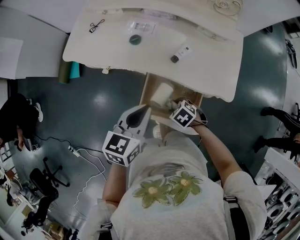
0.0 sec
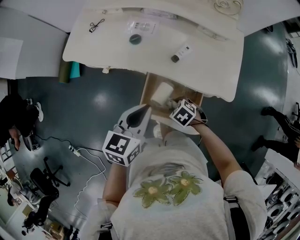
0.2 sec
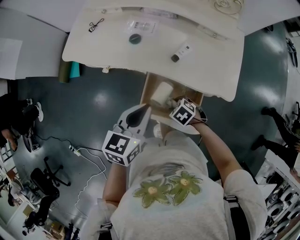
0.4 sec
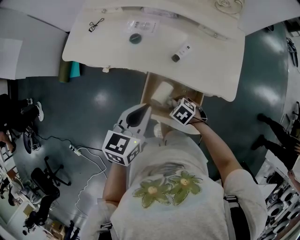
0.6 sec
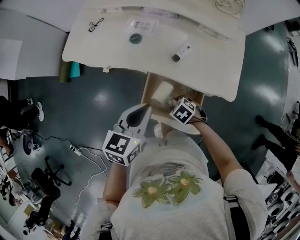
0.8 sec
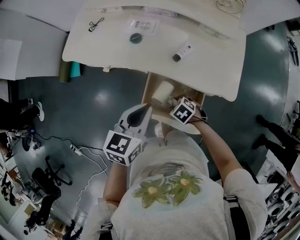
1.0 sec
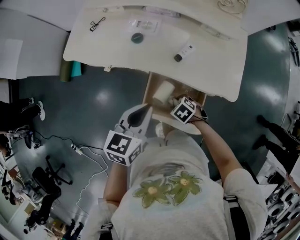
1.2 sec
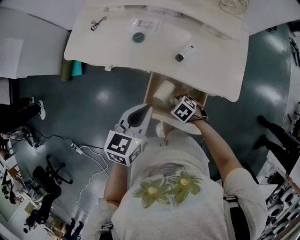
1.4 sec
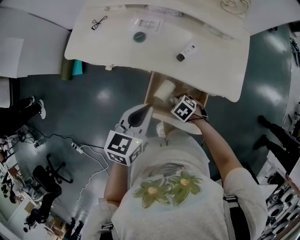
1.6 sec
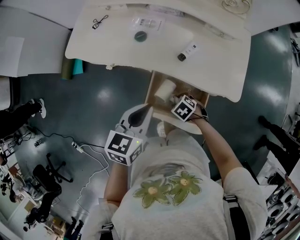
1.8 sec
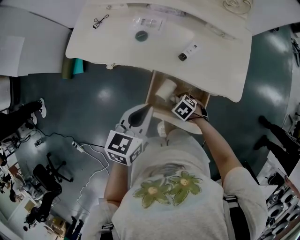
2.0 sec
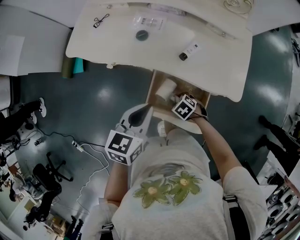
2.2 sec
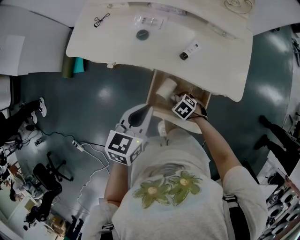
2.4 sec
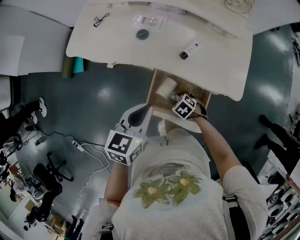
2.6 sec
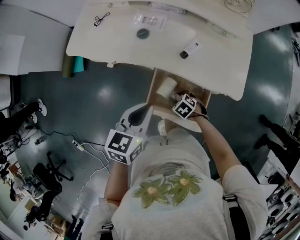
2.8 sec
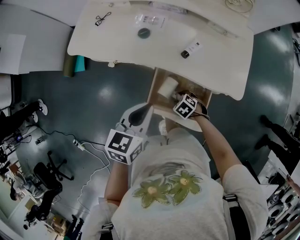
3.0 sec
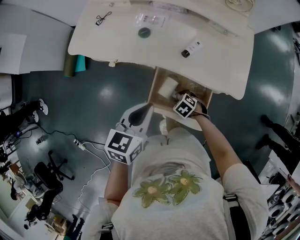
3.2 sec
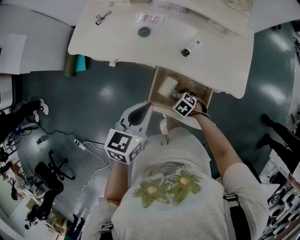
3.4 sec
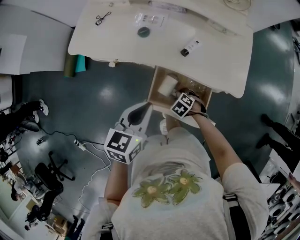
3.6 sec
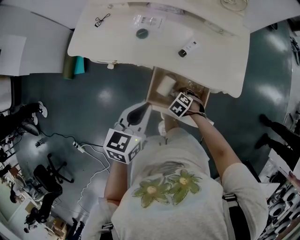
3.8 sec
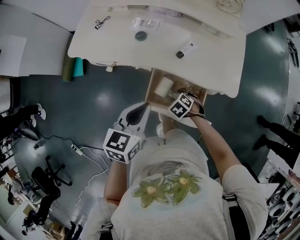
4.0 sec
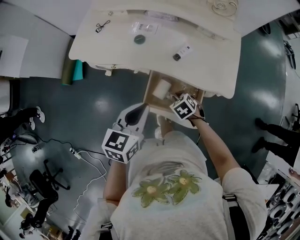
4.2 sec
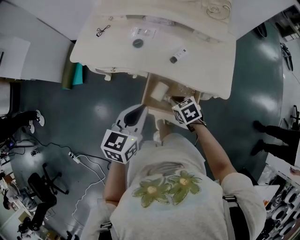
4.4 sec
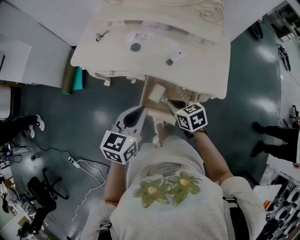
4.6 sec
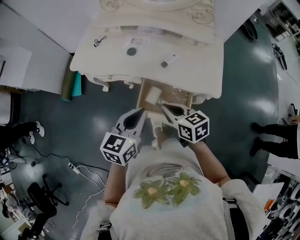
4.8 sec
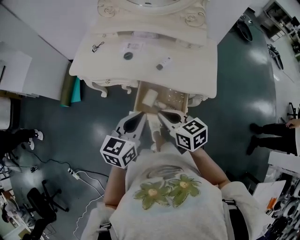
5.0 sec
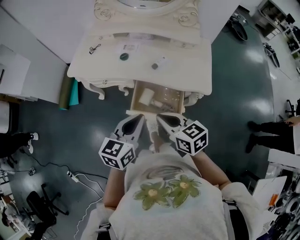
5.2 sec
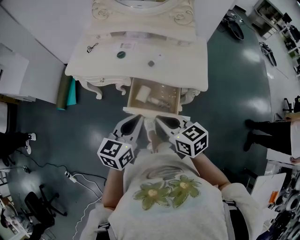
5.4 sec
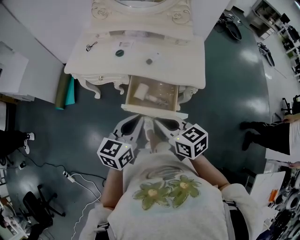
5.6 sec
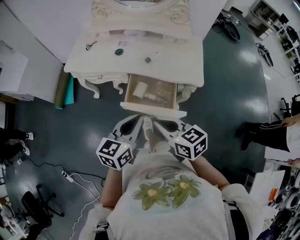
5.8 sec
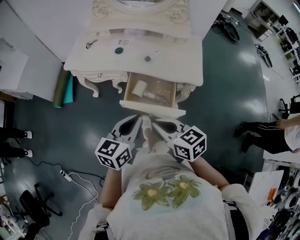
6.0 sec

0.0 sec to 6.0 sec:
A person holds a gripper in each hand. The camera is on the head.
0.0 sec to 1.6 sec: The grippers make only small movements.
1.6 sec to 3.0 sec: The grippers move only a little.
3.0 sec to 4.4 sec: The right gripper shifts some 15 cm upward, rotates some 30 degrees, and closes up.
4.4 sec to 6.0 sec: The left gripper moves backward, about 15 cm; the right gripper moves upward and backward, roughly 30 cm, and tilts its fingers some 30 degrees upward.

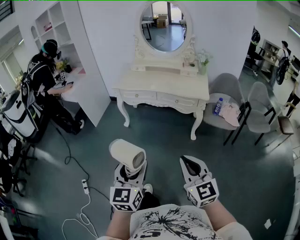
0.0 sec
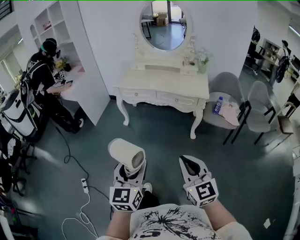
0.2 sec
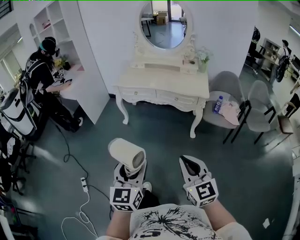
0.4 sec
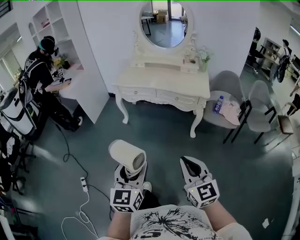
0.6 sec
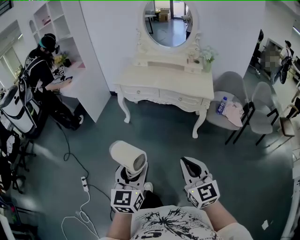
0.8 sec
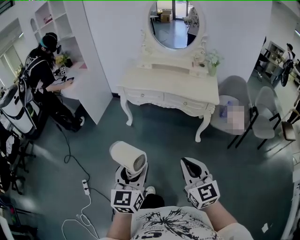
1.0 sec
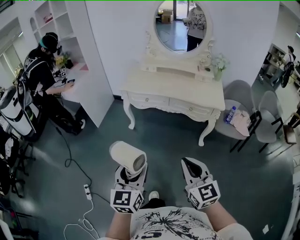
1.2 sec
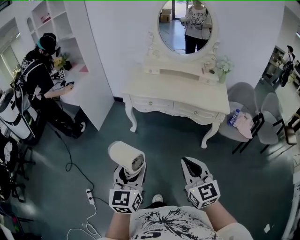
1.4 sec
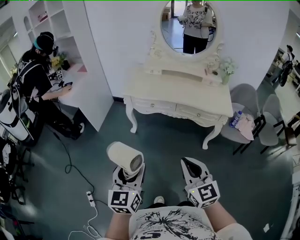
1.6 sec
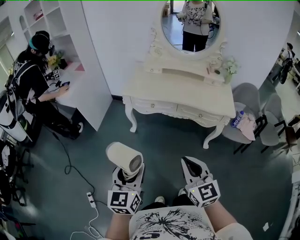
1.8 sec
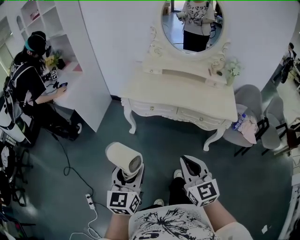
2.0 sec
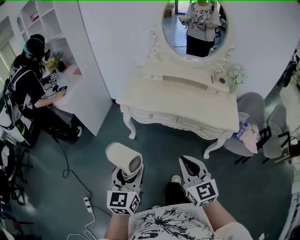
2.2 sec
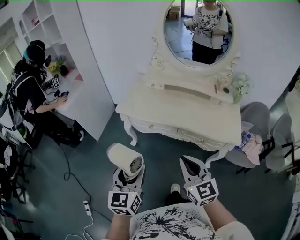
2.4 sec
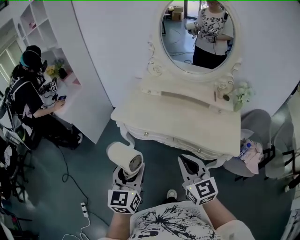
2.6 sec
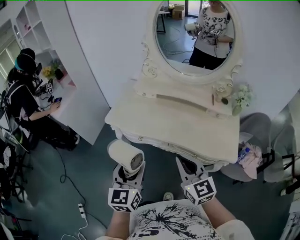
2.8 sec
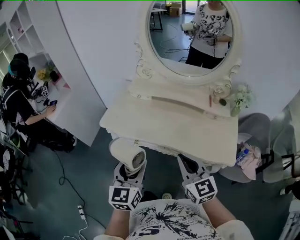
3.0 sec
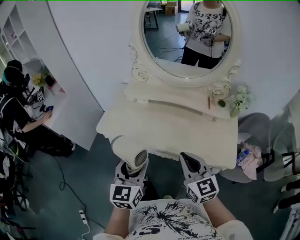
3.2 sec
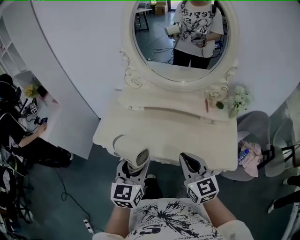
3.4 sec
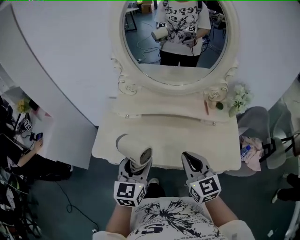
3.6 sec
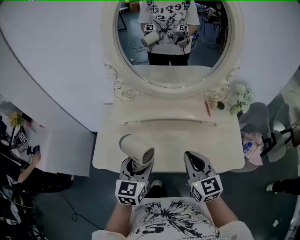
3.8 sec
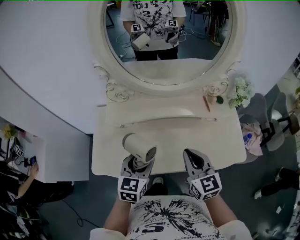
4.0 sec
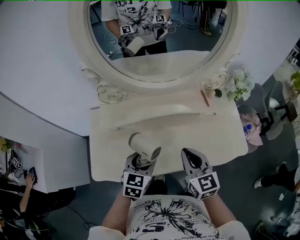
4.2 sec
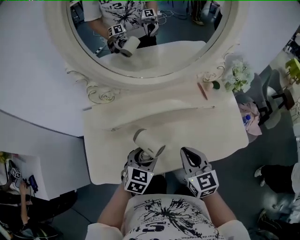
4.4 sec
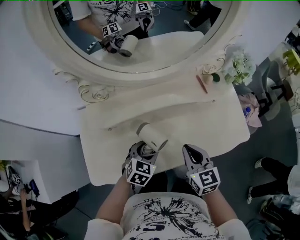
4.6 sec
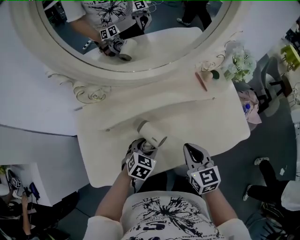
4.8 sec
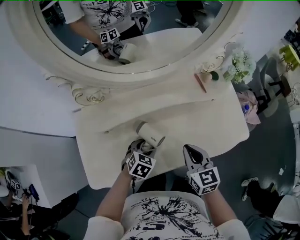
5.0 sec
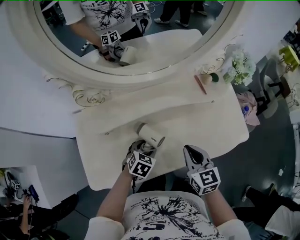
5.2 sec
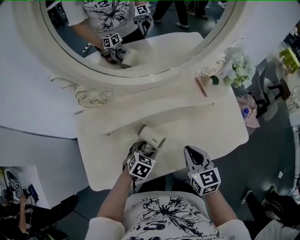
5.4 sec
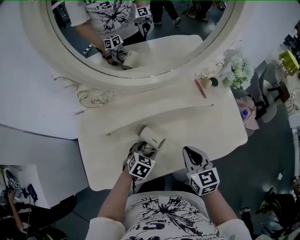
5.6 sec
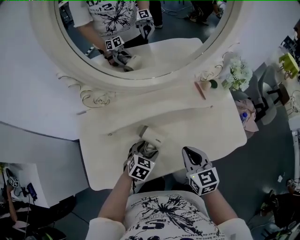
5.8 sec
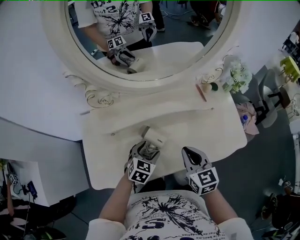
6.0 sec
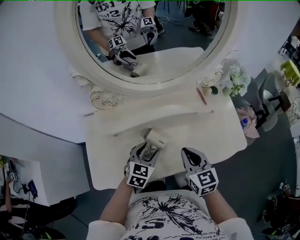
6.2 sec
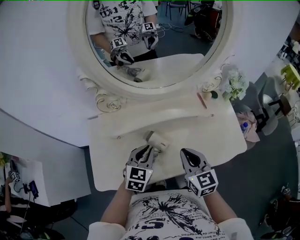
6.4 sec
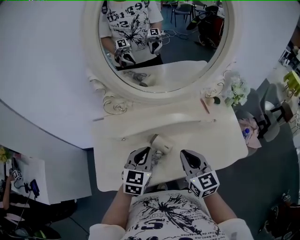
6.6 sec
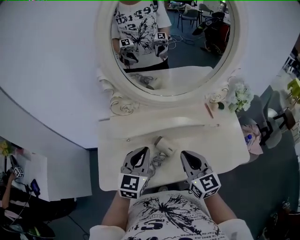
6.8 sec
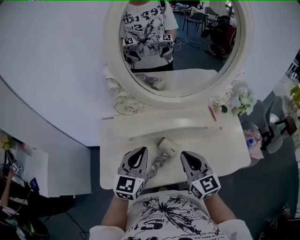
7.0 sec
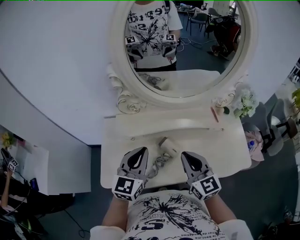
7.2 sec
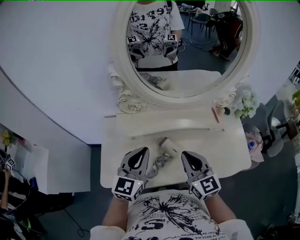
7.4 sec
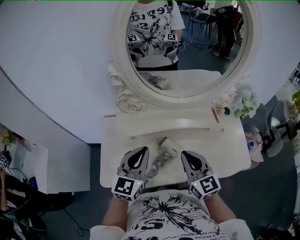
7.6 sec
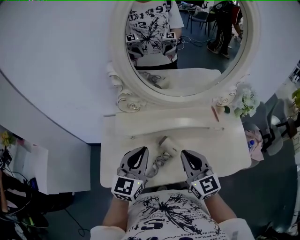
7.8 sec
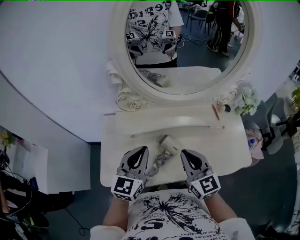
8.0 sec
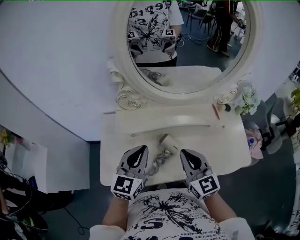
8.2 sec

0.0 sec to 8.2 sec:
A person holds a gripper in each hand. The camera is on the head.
0.0 sec to 1.6 sec: The two grippers go about 30 cm forward and to the left.
1.6 sec to 3.2 sec: The pair of grippers is taken forward and to the right, approximately 50 cm.
3.2 sec to 5.0 sec: The right gripper ends up about 25 cm from where it was, and swivels about 40 degrees. Meanwhile the left gripper travels downward by approximately 30 cm, and tips its fingers downward by some 40 degrees.
5.0 sec to 6.6 sec: The left gripper moves upward, roughly 20 cm, points its fingers approximately 30 degrees further upward, and closes its fingers. Meanwhile the right gripper goes some 10 cm upward and to the left.
6.6 sec to 8.2 sec: The right gripper travels to the left by roughly 5 cm. The left gripper heads upward and to the left, covering about 10 cm.

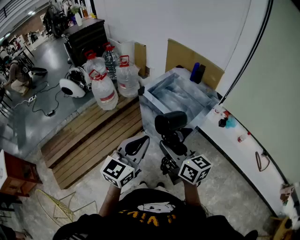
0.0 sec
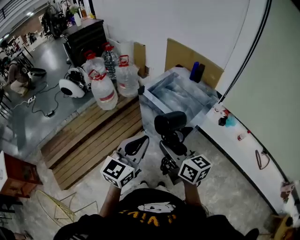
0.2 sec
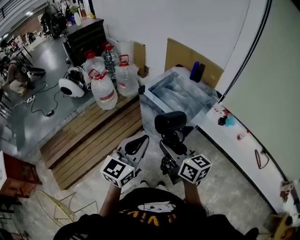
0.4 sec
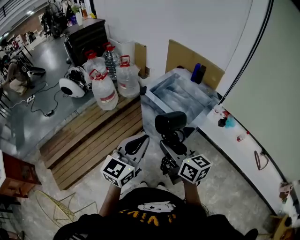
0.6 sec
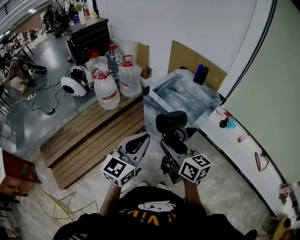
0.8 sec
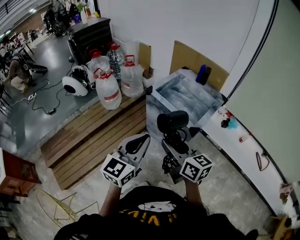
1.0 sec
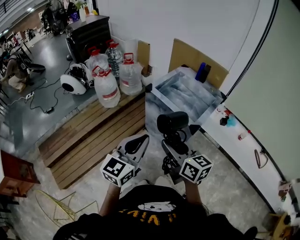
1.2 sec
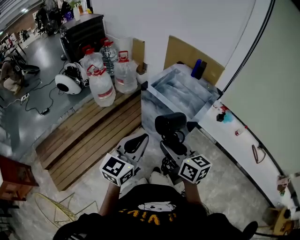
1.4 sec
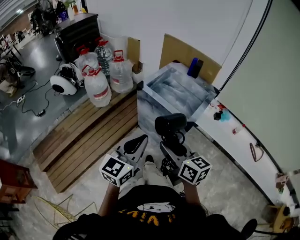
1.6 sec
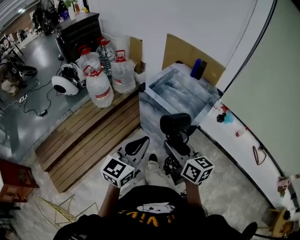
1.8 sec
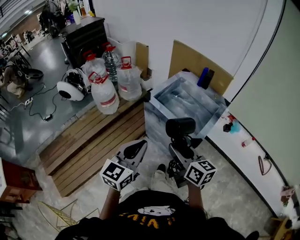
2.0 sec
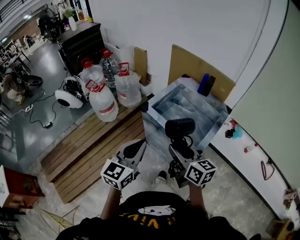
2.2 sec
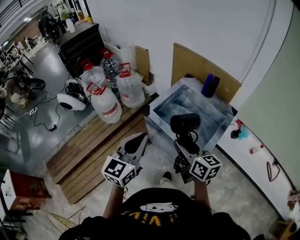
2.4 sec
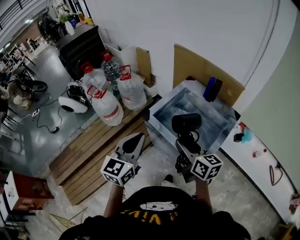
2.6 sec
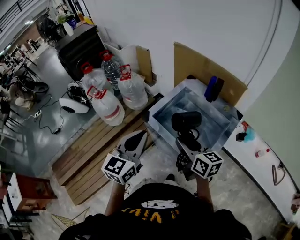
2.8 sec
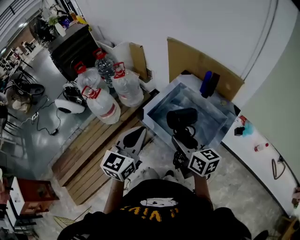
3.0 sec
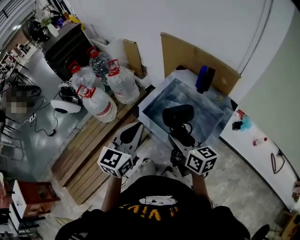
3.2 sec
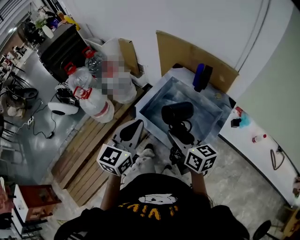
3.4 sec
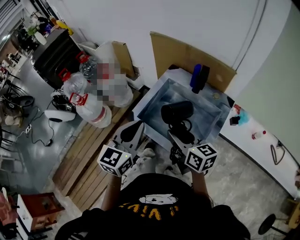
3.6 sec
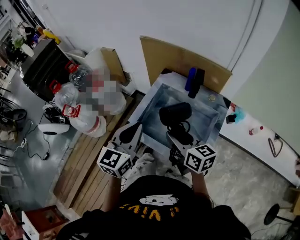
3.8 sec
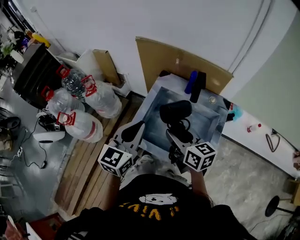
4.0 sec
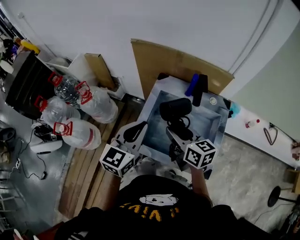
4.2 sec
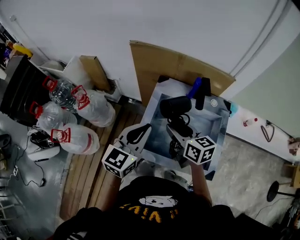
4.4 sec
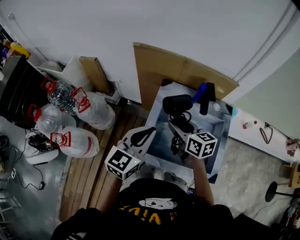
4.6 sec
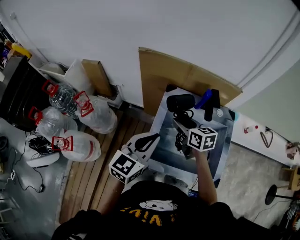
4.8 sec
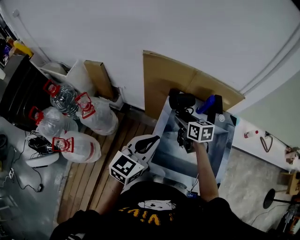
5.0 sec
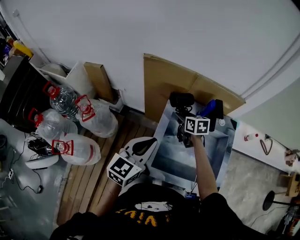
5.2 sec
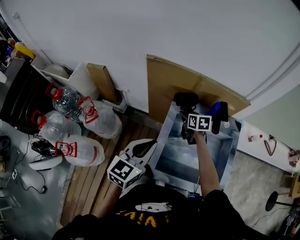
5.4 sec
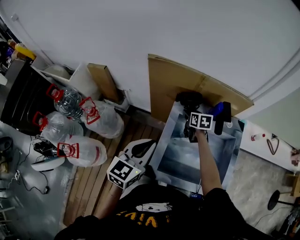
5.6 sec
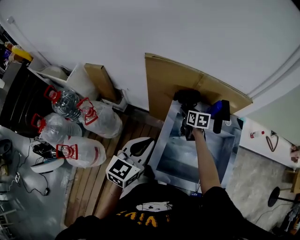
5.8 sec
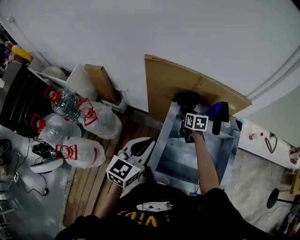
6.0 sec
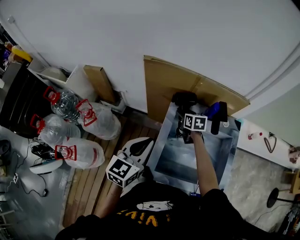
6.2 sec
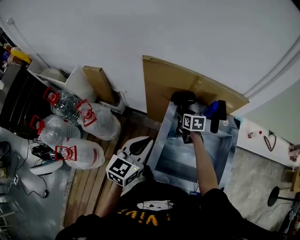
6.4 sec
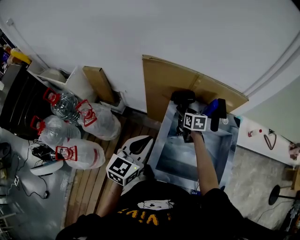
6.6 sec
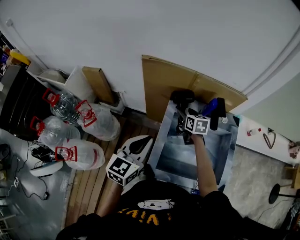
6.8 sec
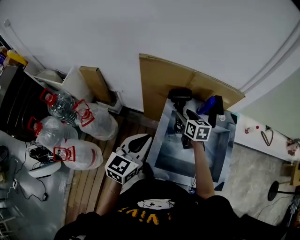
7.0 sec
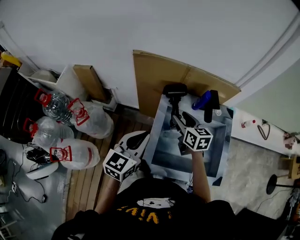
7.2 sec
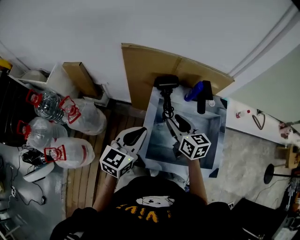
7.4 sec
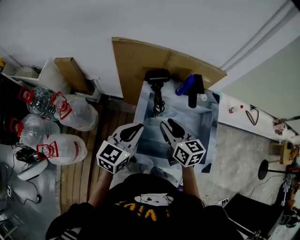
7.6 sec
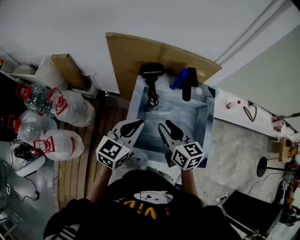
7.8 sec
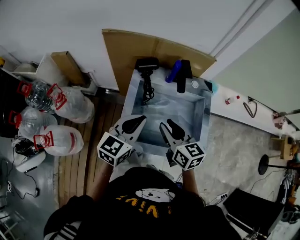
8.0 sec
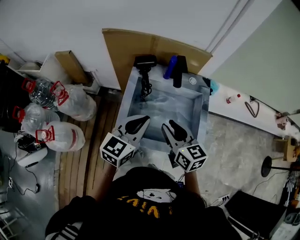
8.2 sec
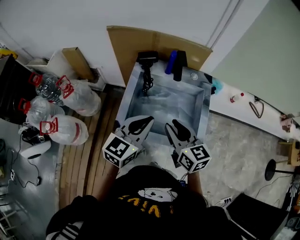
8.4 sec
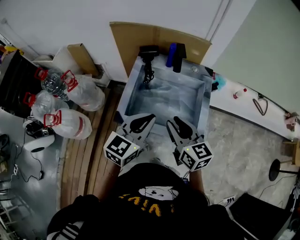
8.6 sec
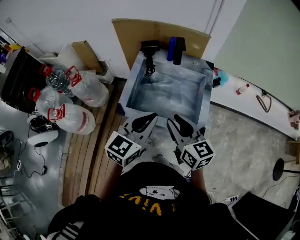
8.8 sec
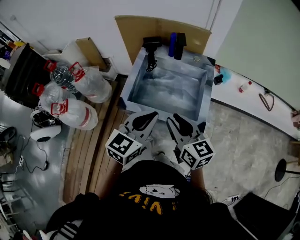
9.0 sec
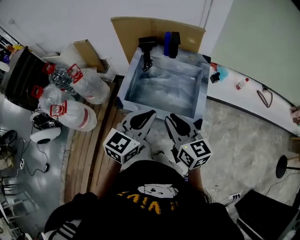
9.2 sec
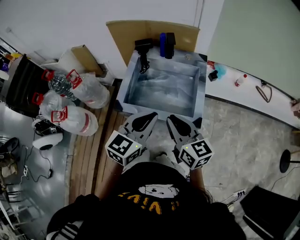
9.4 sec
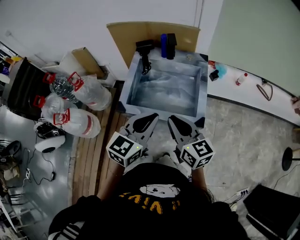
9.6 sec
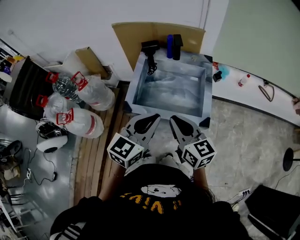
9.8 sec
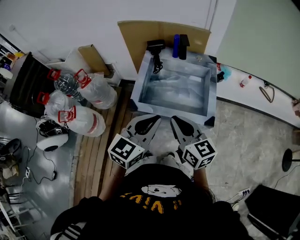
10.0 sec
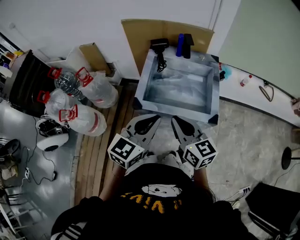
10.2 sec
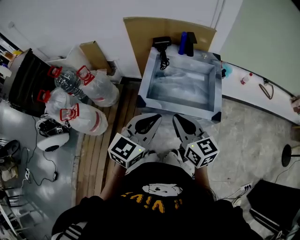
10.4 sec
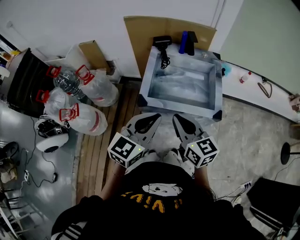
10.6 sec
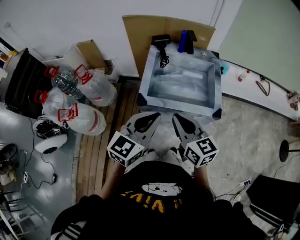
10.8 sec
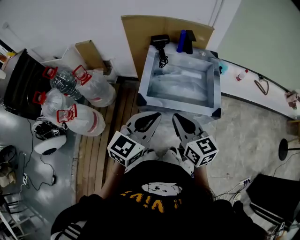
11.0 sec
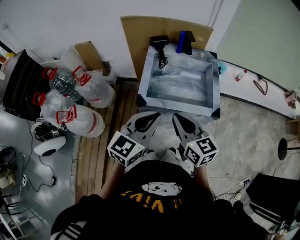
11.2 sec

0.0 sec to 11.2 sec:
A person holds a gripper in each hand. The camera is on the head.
0.0 sec to 1.6 sec: The right gripper ends up some 5 cm from where it was; the left gripper heads to the left, covering about 5 cm.
1.6 sec to 3.2 sec: Both grippers move forward, some 30 cm.
3.2 sec to 4.8 sec: The left gripper changes place by roughly 25 cm, and rotates approximately 40 degrees. The right gripper ends up about 30 cm from where it was, and rotates about 30 degrees.
4.8 sec to 6.4 sec: The right gripper shifts about 20 cm forward and downward. Meanwhile the left gripper heads to the left, covering approximately 5 cm.
6.4 sec to 8.0 sec: The left gripper travels to the right by approximately 10 cm, while the right gripper moves backward and upward, approximately 30 cm, rotates approximately 20 degrees, and closes up.
8.0 sec to 9.6 sec: The grippers both shift backward and to the right by roughly 20 cm. The right gripper closes.
9.6 sec to 11.2 sec: The grippers both shift to the left by about 15 cm.
